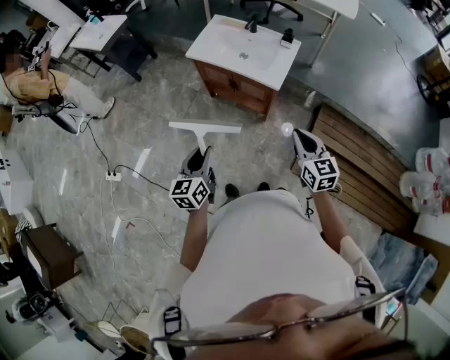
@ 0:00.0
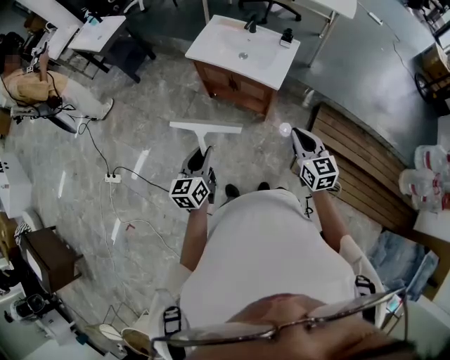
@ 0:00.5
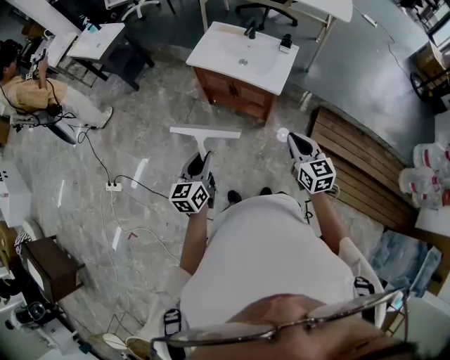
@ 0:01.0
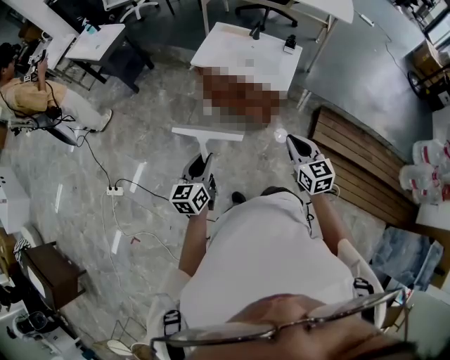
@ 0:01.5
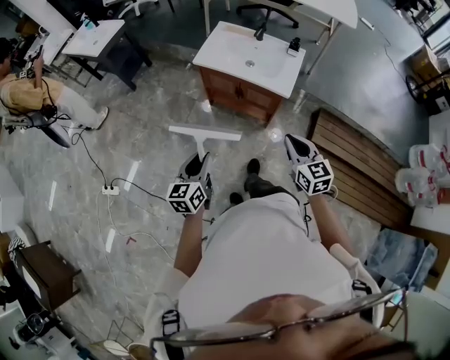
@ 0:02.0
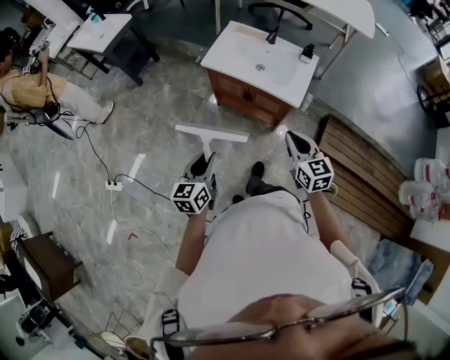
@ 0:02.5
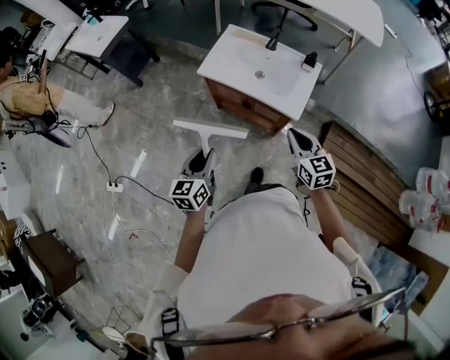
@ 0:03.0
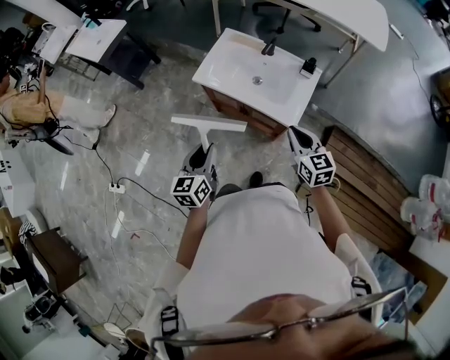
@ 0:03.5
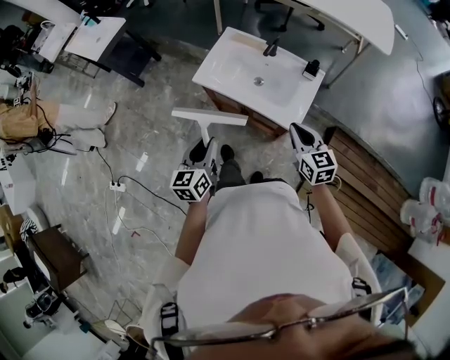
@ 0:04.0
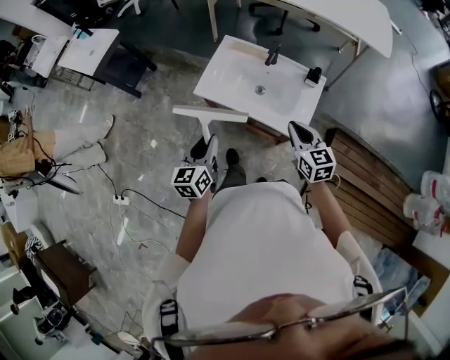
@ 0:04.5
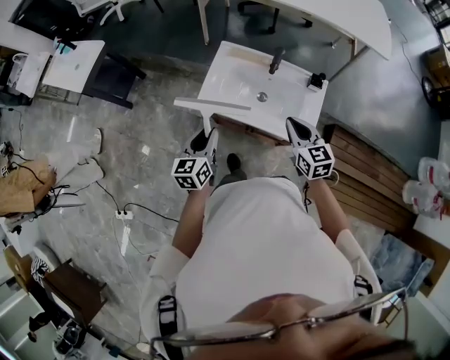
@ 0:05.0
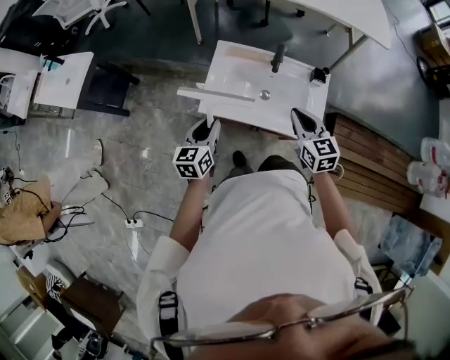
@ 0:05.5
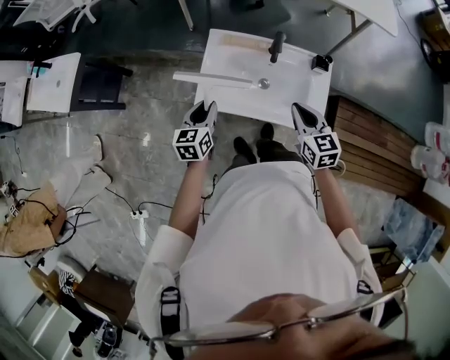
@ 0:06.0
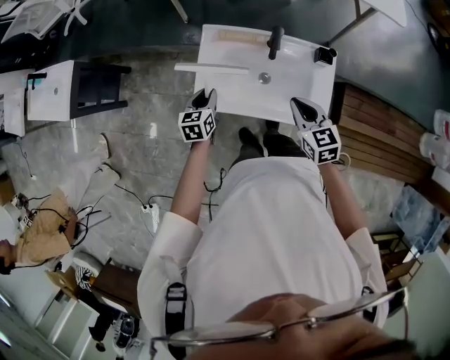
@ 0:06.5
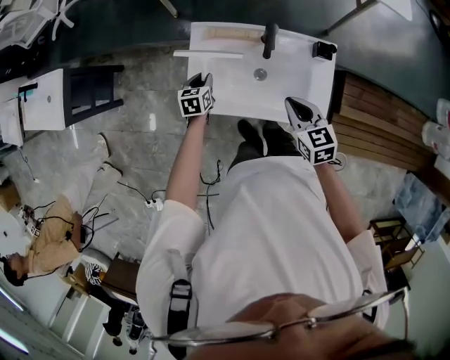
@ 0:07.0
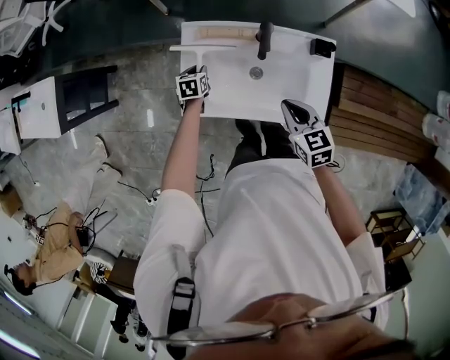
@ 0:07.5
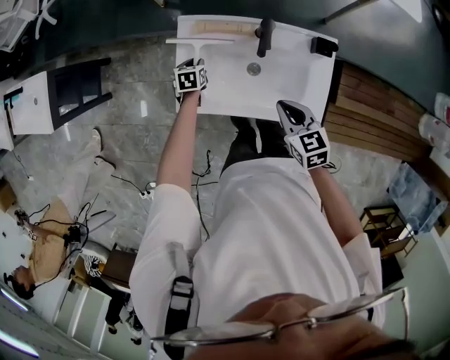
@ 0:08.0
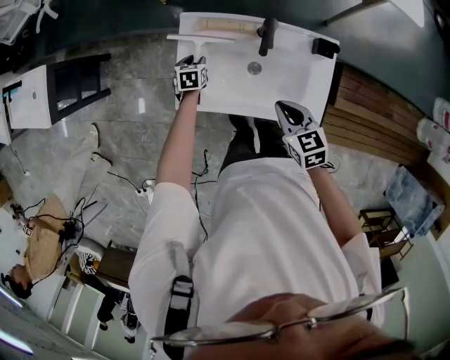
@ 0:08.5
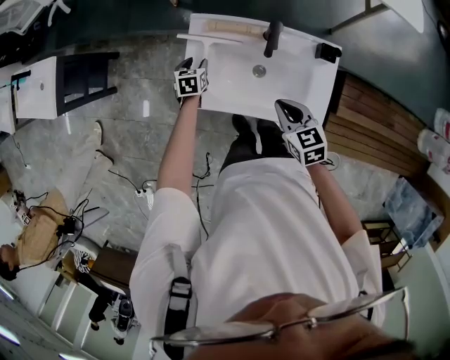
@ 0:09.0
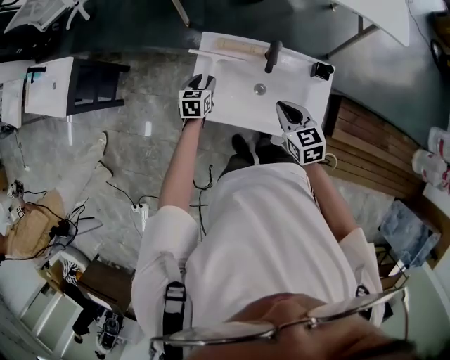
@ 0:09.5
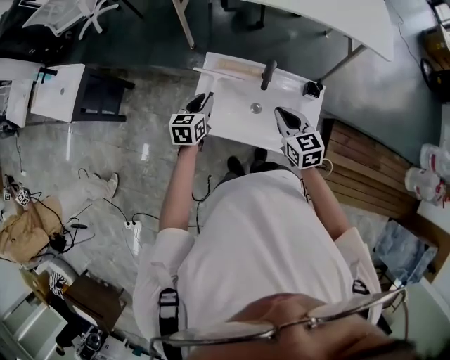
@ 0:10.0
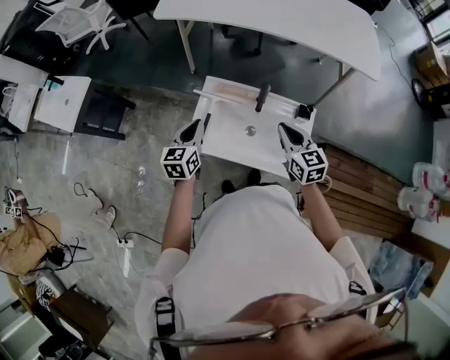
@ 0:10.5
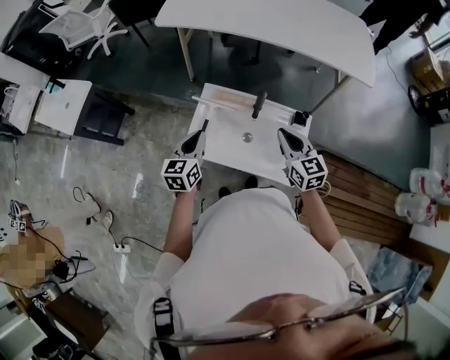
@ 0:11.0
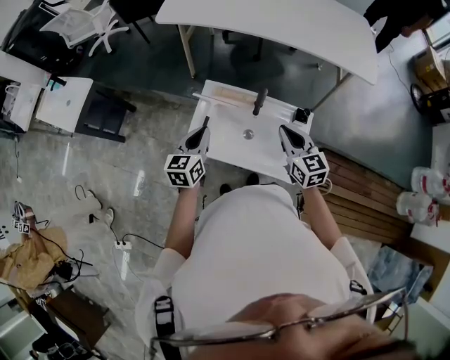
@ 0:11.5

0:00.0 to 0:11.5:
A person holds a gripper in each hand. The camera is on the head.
0:00.0 to 0:02.0: The two grippers go roughly 10 cm to the left.
0:02.0 to 0:04.0: The grippers both shift forward by roughly 25 cm.
0:04.0 to 0:06.0: The right gripper travels forward and to the left by roughly 20 cm; the left gripper shifts about 30 cm forward, and swivels about 20 degrees.
0:06.0 to 0:07.5: The left gripper heads downward and forward, covering about 30 cm, and turns by approximately 30 degrees; the right gripper shifts approximately 10 cm downward.
0:07.5 to 0:09.5: The left gripper shifts approximately 10 cm upward, and opens up.
0:09.5 to 0:11.5: The right gripper goes about 10 cm upward, while the left gripper moves upward and backward, about 25 cm, rotates some 30 degrees, and closes its fingers.

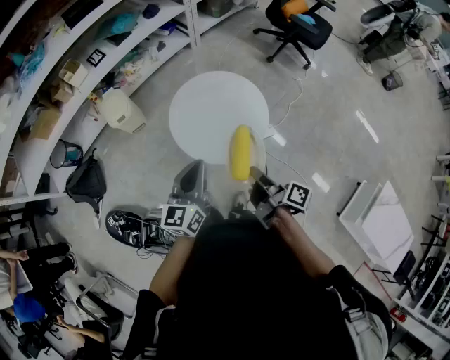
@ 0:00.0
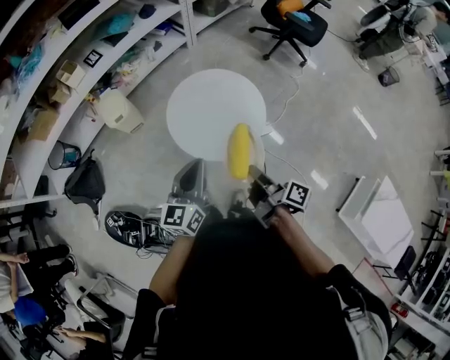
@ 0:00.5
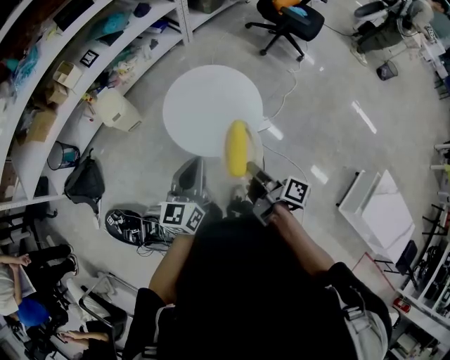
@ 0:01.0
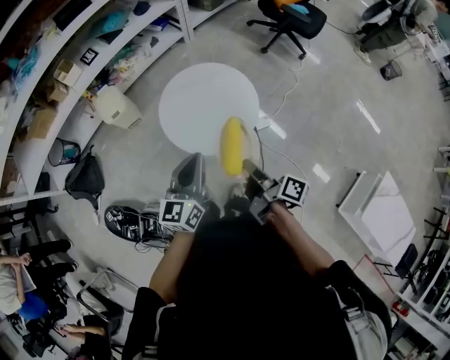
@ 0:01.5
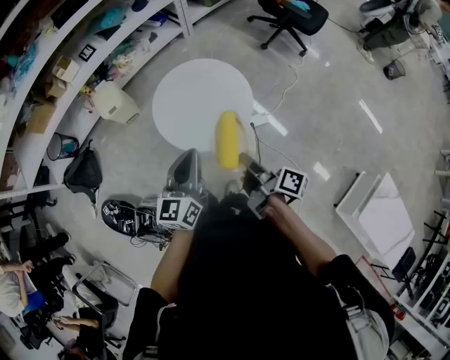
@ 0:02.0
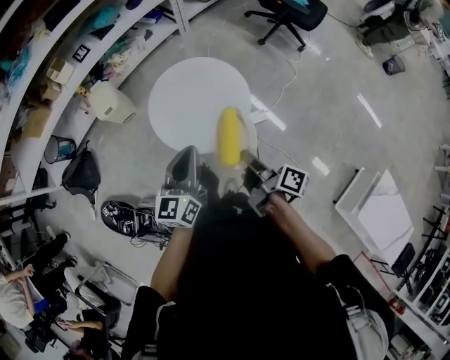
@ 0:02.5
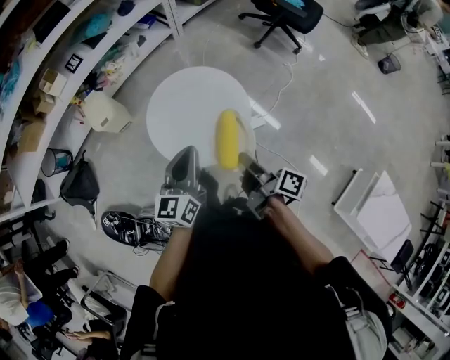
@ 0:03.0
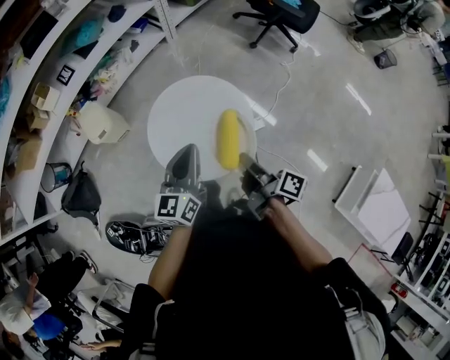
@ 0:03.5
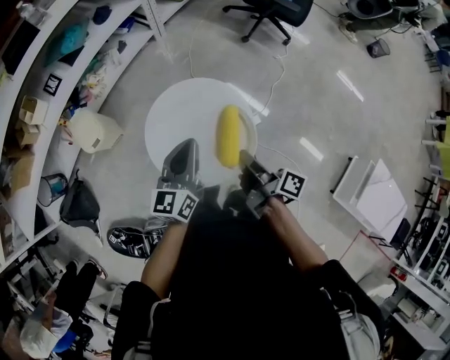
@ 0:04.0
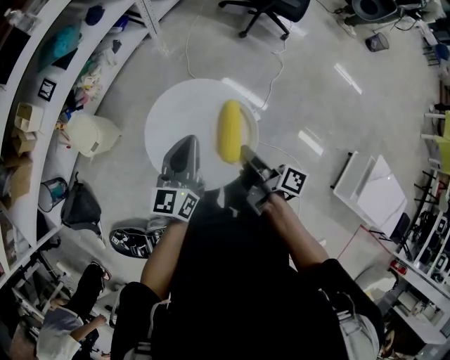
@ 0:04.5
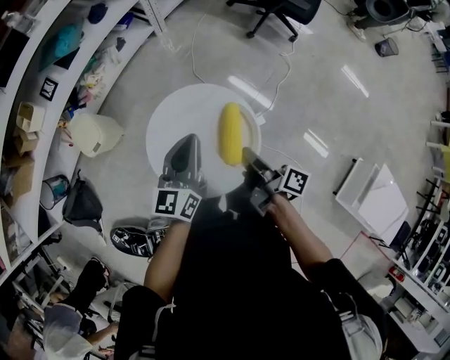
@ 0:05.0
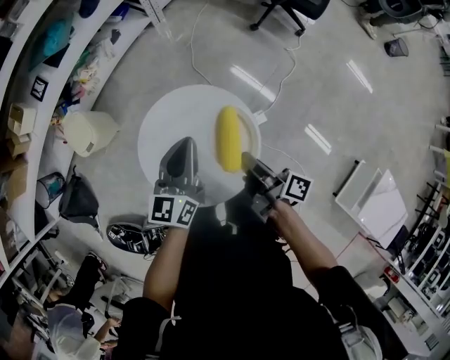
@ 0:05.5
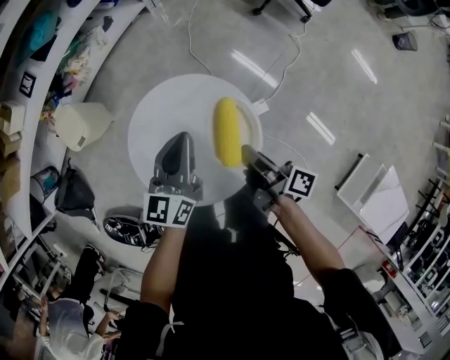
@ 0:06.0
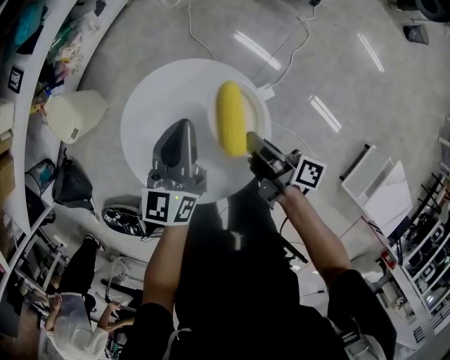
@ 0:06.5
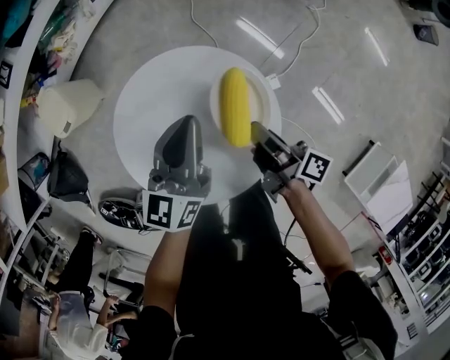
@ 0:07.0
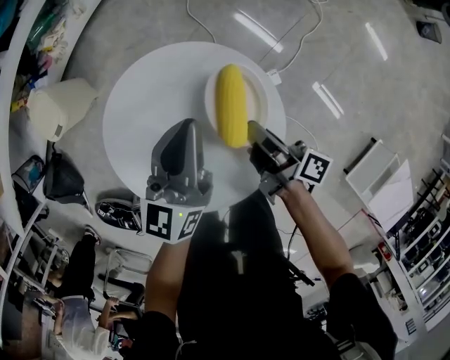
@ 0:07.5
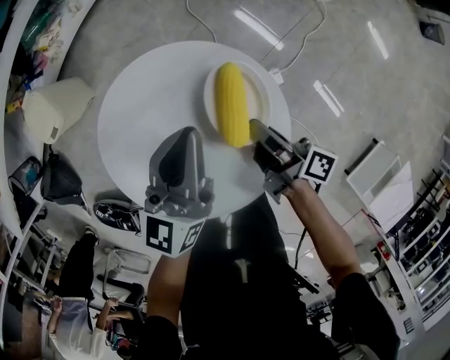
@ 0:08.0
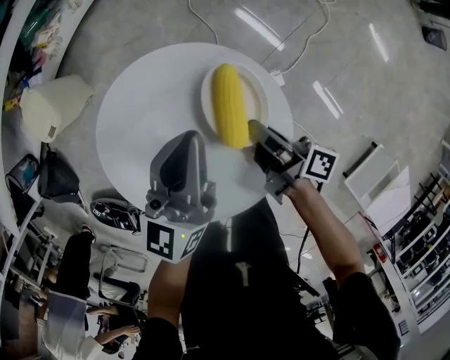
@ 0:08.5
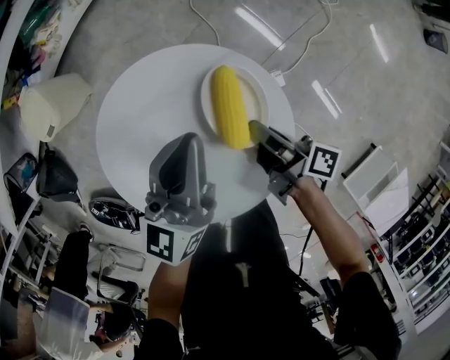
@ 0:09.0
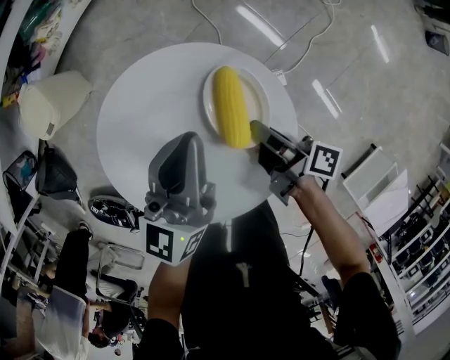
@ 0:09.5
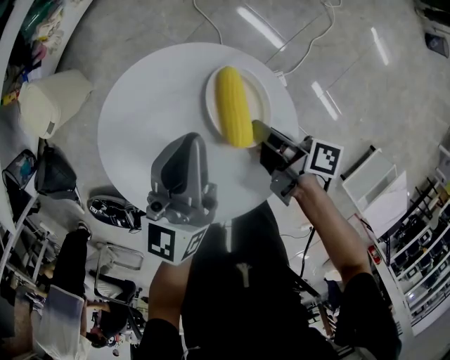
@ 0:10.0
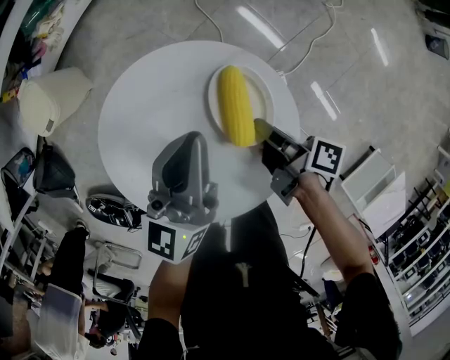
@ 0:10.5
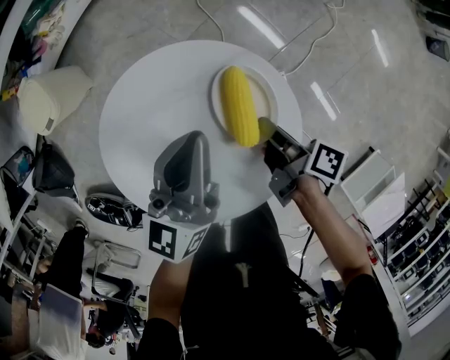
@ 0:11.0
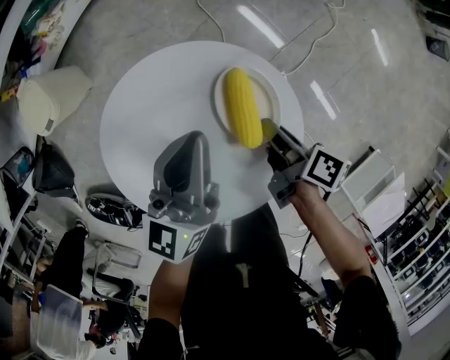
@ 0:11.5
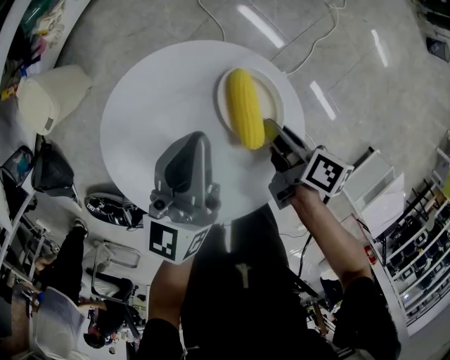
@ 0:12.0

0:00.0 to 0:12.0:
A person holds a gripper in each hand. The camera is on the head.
0:00.0 to 0:02.0: The left gripper changes place by roughly 10 cm.
0:02.0 to 0:04.0: The left gripper moves approximately 25 cm.
0:04.0 to 0:06.0: The left gripper ends up some 15 cm from where it was.
0:06.0 to 0:08.0: The left gripper moves downward, about 10 cm.

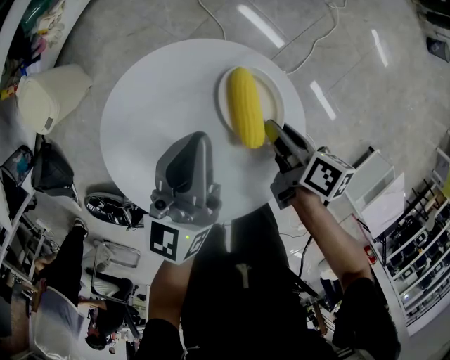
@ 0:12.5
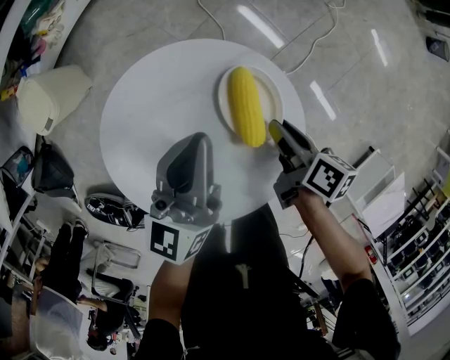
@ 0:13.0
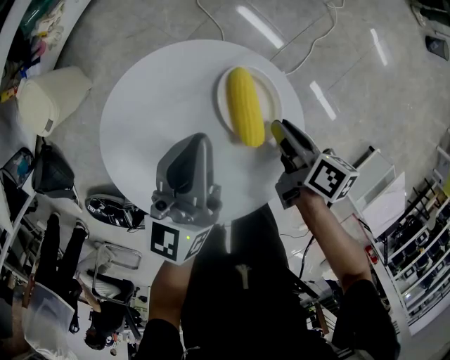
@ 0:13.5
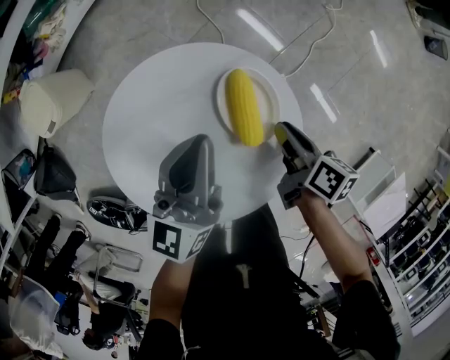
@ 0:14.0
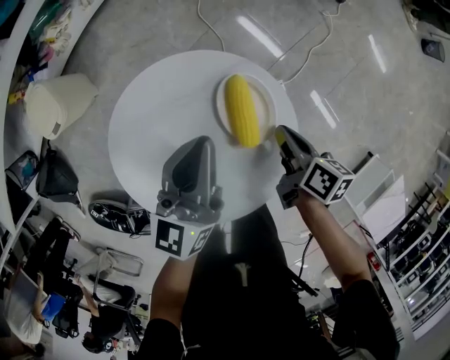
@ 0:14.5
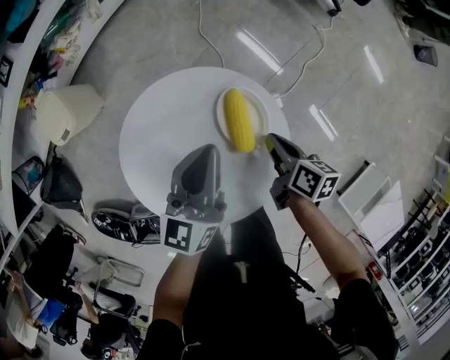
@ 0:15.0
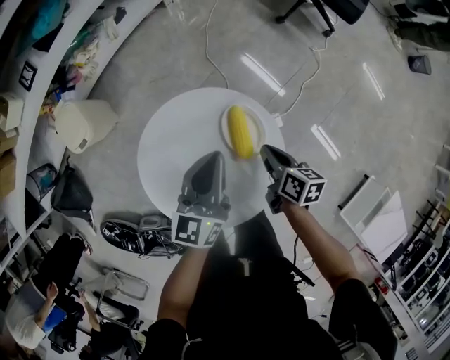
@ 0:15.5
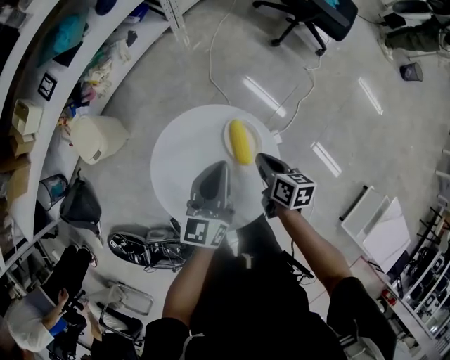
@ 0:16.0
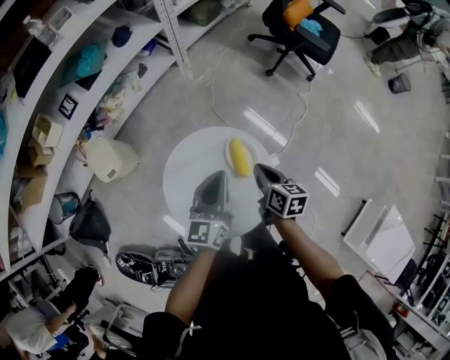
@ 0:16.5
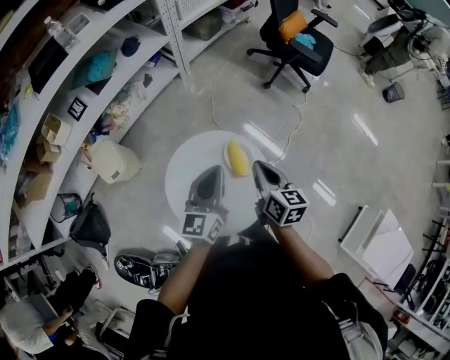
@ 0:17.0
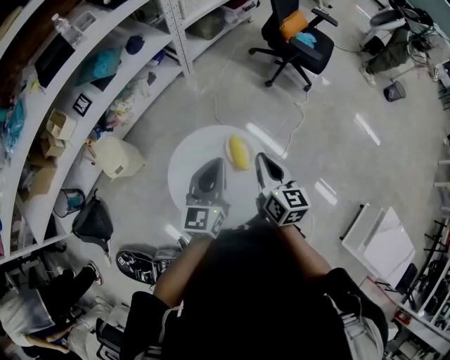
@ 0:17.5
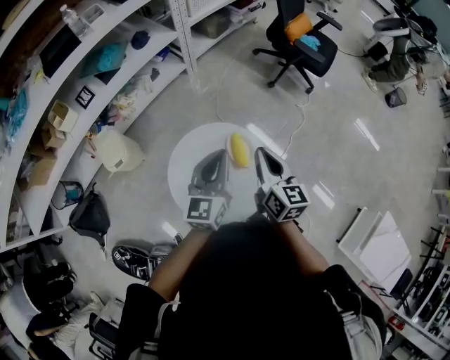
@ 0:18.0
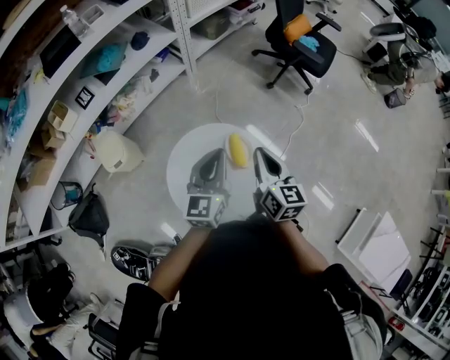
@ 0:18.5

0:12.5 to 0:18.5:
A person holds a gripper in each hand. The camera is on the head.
0:14.5 to 0:16.5: The left gripper shifts roughly 15 cm upward.
0:16.5 to 0:18.5: The left gripper is displaced upward by approximately 10 cm.
